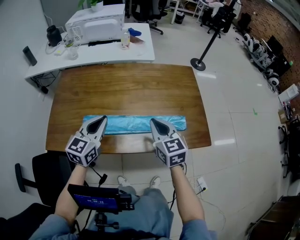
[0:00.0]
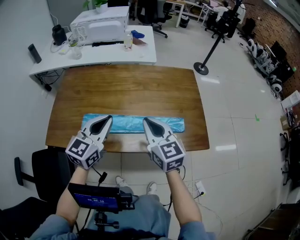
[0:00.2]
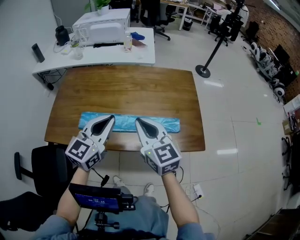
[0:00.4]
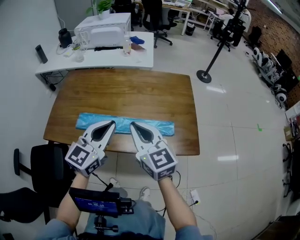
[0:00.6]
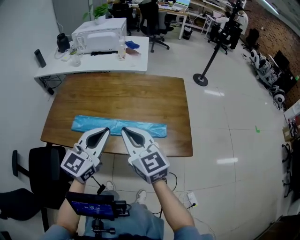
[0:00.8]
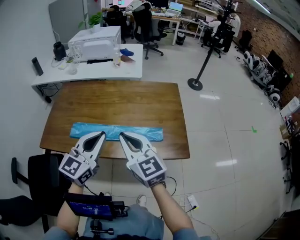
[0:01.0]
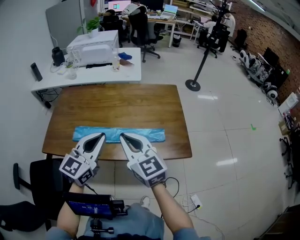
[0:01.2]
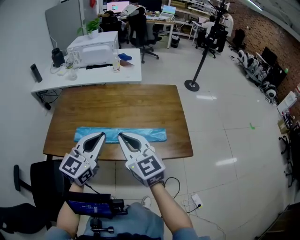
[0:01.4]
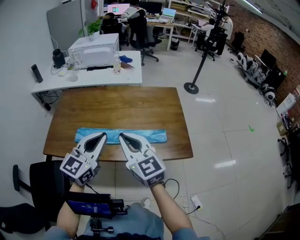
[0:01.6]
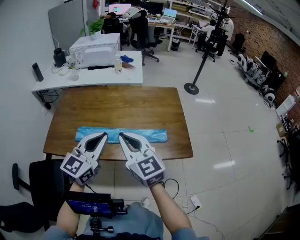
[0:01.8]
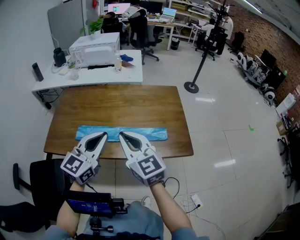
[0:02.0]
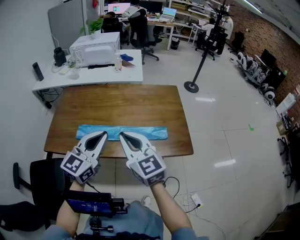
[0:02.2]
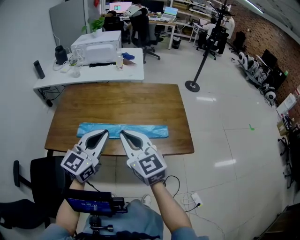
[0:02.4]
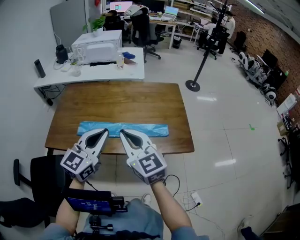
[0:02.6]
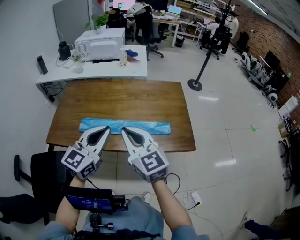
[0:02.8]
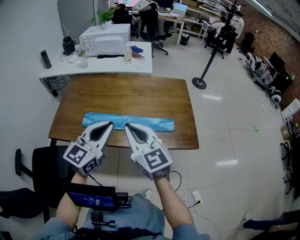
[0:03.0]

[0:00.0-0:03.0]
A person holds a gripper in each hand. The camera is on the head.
0:00.0 to 0:01.6: The left gripper heads upward, backward and to the right, covering roughly 20 cm. The right gripper travels upward and backward by about 15 cm, and swivels roughly 20 degrees.
0:01.6 to 0:03.0: The grippers move only a little.

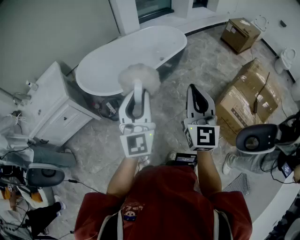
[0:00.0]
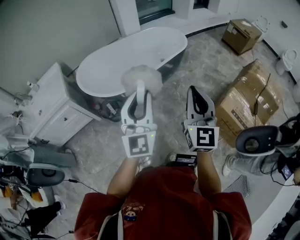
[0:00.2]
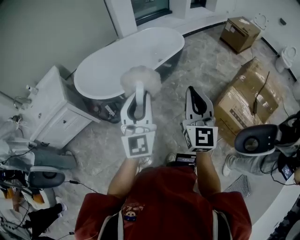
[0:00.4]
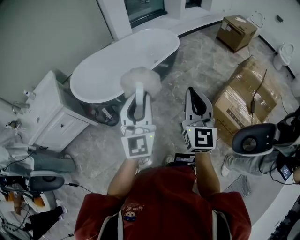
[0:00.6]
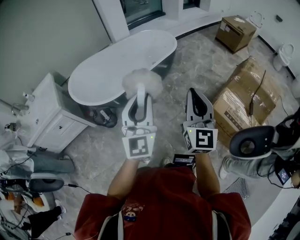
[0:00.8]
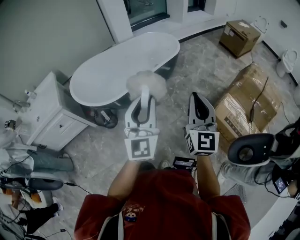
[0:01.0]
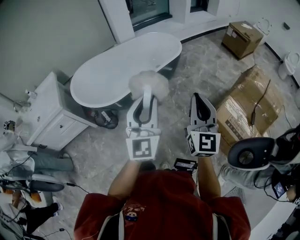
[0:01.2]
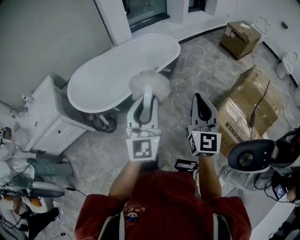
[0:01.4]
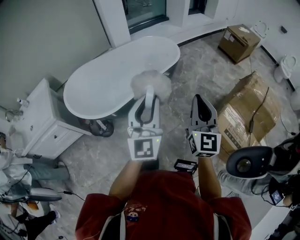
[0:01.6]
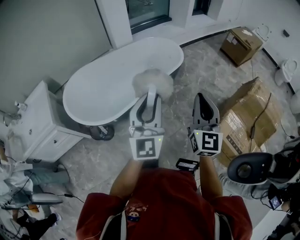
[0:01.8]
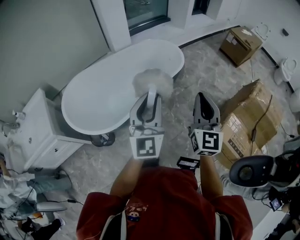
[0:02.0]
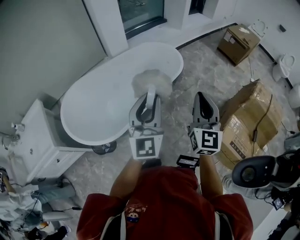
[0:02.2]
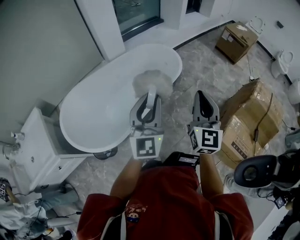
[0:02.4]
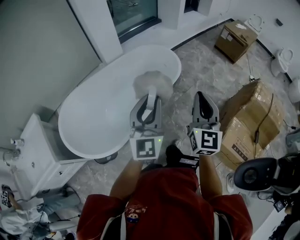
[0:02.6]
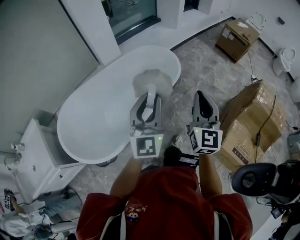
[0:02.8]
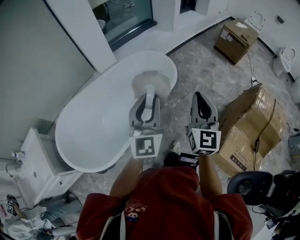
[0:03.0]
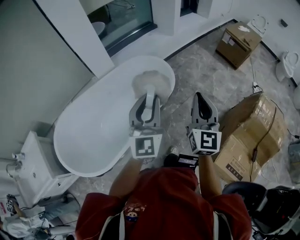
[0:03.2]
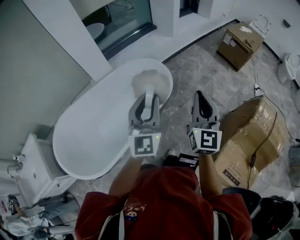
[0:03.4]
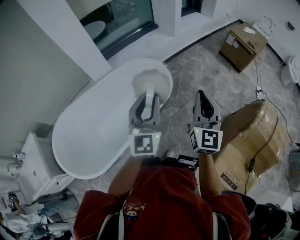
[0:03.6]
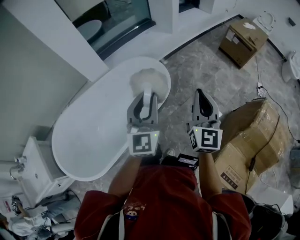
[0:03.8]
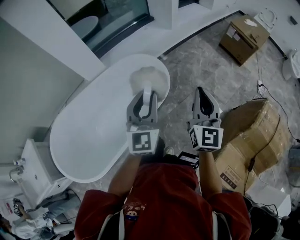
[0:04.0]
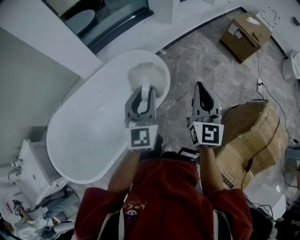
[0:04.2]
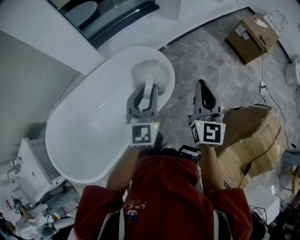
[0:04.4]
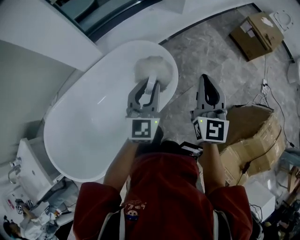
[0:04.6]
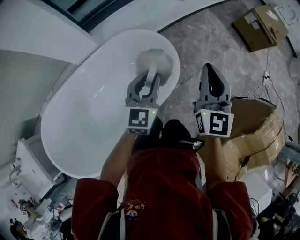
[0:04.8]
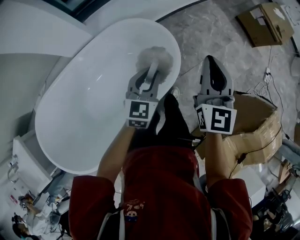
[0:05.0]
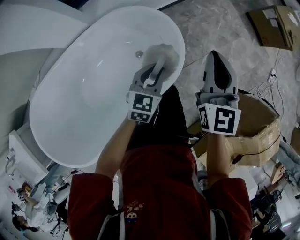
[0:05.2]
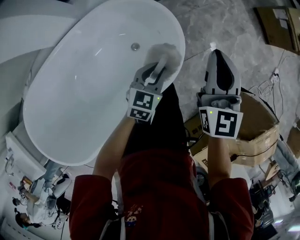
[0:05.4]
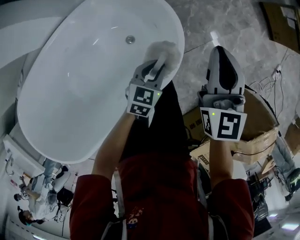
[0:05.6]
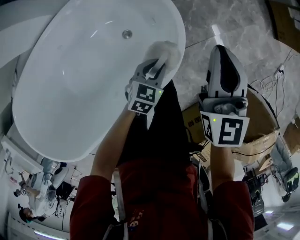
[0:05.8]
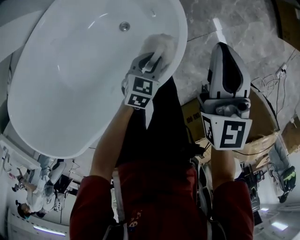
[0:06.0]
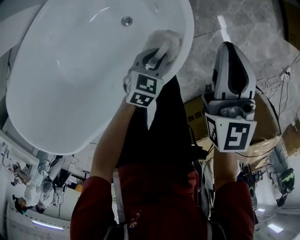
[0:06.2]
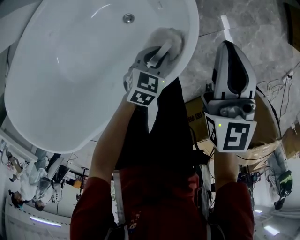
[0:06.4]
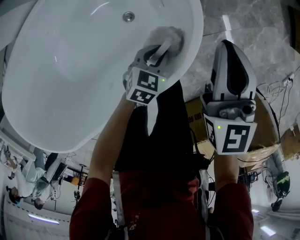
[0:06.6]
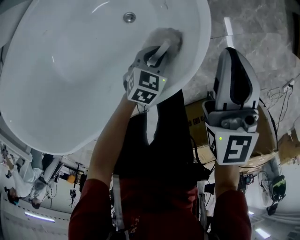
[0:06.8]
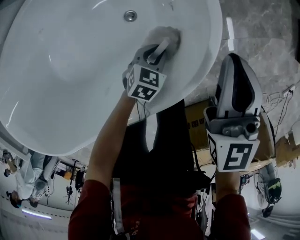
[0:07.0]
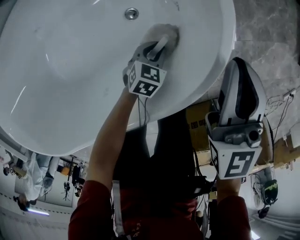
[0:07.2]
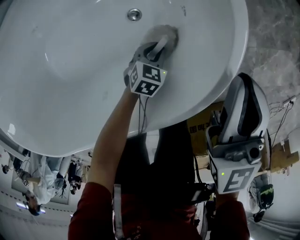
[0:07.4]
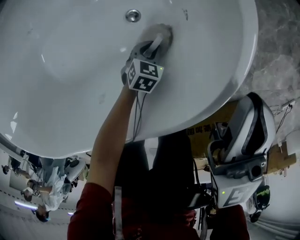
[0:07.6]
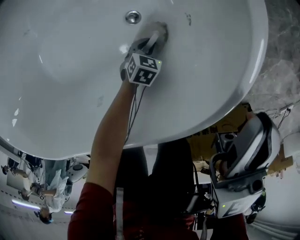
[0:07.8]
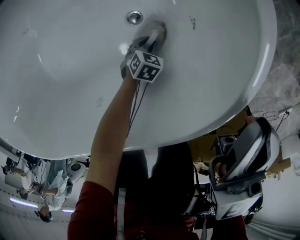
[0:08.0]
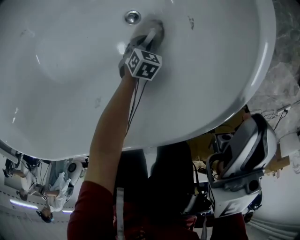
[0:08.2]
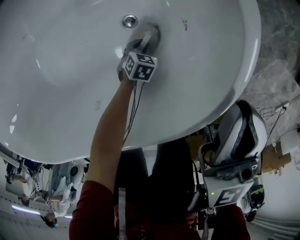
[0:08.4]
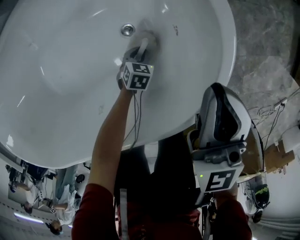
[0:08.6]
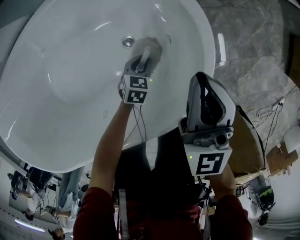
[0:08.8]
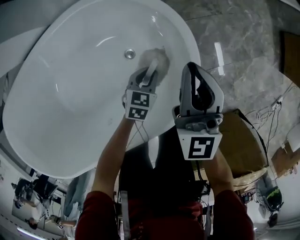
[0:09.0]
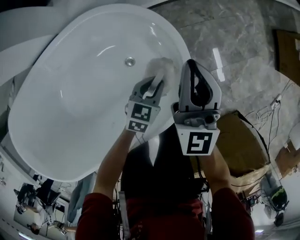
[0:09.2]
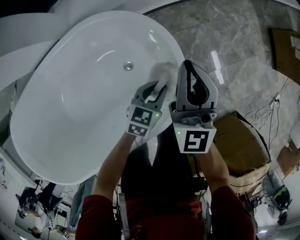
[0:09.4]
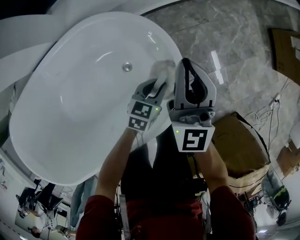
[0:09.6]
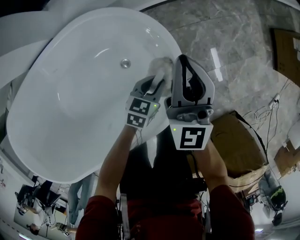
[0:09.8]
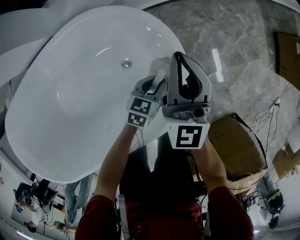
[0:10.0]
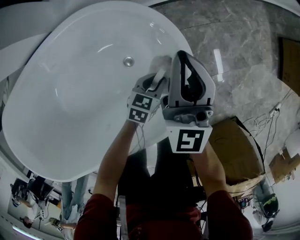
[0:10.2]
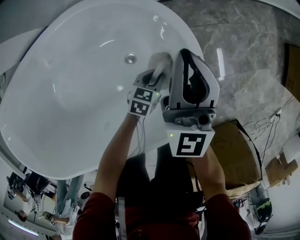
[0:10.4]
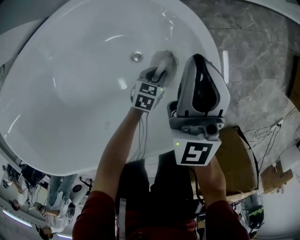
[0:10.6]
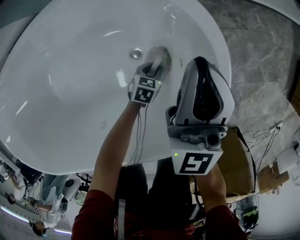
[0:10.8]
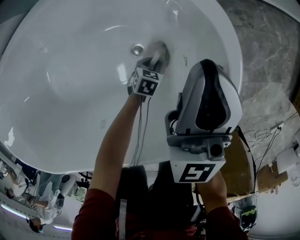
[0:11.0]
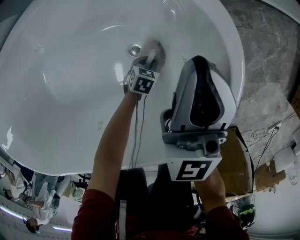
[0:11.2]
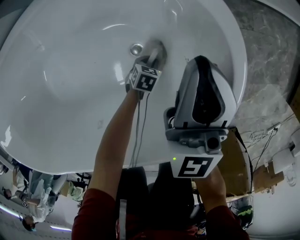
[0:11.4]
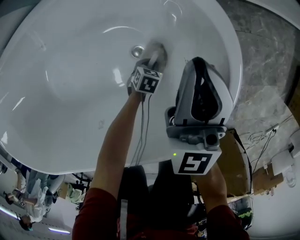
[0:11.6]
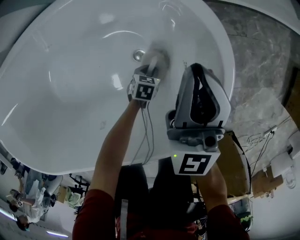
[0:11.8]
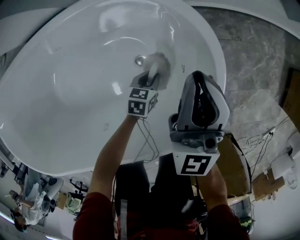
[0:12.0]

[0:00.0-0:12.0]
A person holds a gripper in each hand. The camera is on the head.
0:00.0 to 0:01.6: Both grippers move forward and to the right, approximately 20 cm.
0:01.6 to 0:03.0: The grippers both shift forward by approximately 40 cm.
0:03.0 to 0:04.4: Both grippers travel together forward, about 30 cm.
0:04.4 to 0:06.0: The left gripper travels downward by some 50 cm, and tilts its fingers approximately 50 degrees downward, while the right gripper moves downward and forward, about 40 cm, and turns by some 30 degrees.
0:06.0 to 0:07.6: The right gripper heads downward and to the left, covering approximately 15 cm; the left gripper heads downward, covering some 30 cm.
0:07.6 to 0:09.0: The right gripper shifts roughly 5 cm upward. The left gripper travels upward by some 20 cm.
0:09.0 to 0:10.4: The right gripper goes upward and returns, some 5 cm each way, while the left gripper shifts some 5 cm downward.
0:10.4 to 0:12.0: The left gripper moves to the left, roughly 10 cm, and moves roughly 20 cm downward and comes back. The right gripper travels to the left by approximately 5 cm, and reaches some 5 cm downward, then returns.

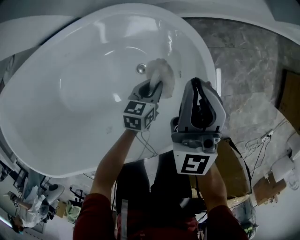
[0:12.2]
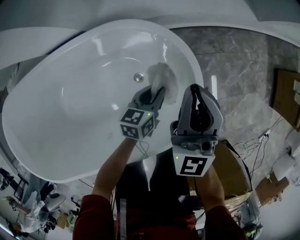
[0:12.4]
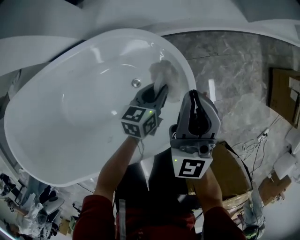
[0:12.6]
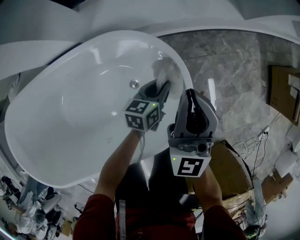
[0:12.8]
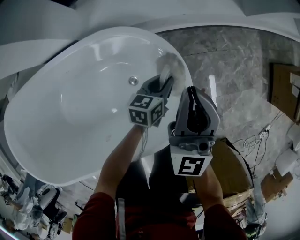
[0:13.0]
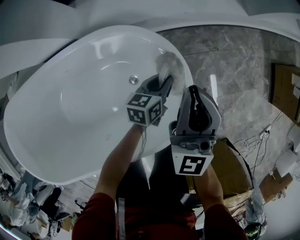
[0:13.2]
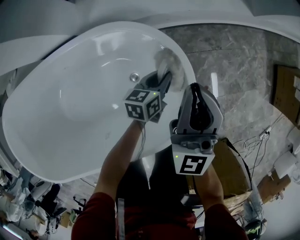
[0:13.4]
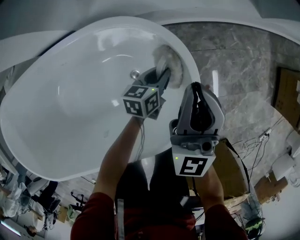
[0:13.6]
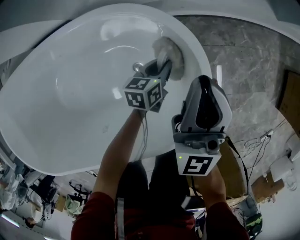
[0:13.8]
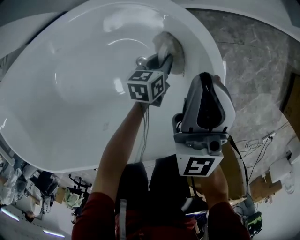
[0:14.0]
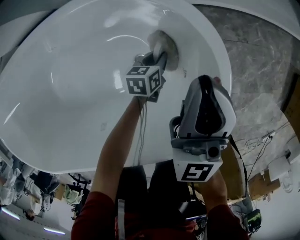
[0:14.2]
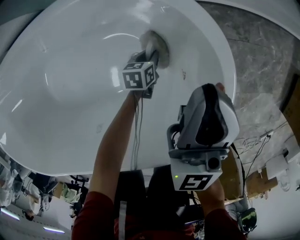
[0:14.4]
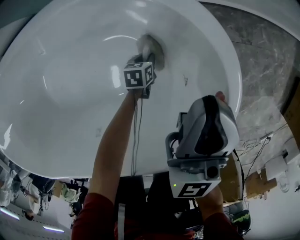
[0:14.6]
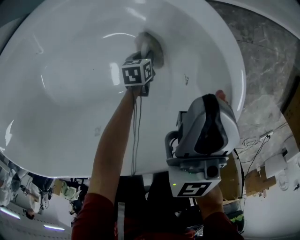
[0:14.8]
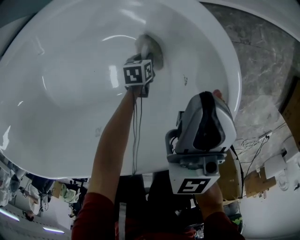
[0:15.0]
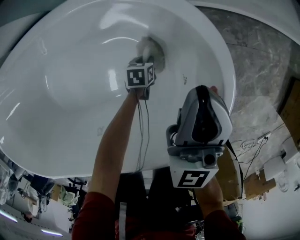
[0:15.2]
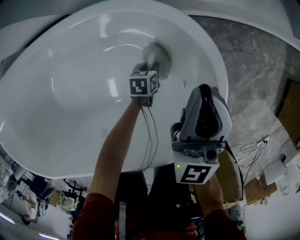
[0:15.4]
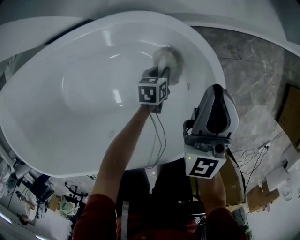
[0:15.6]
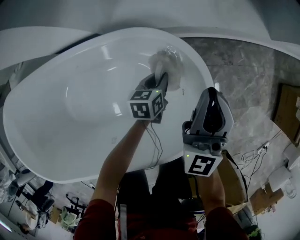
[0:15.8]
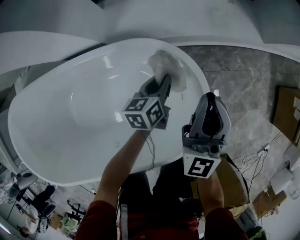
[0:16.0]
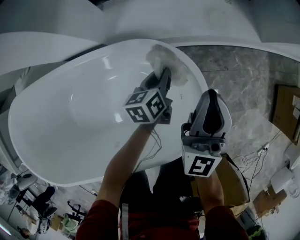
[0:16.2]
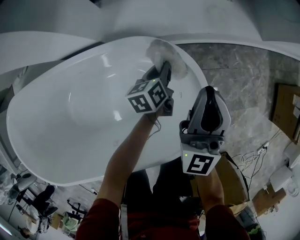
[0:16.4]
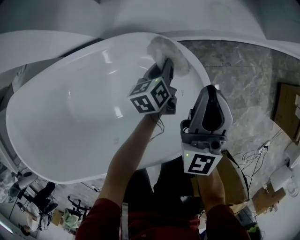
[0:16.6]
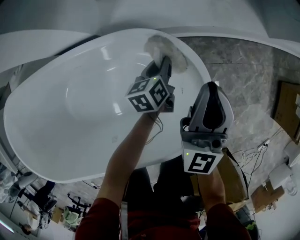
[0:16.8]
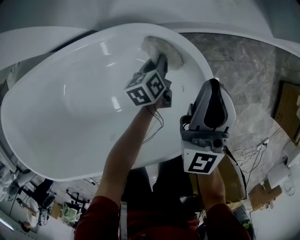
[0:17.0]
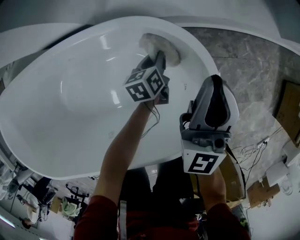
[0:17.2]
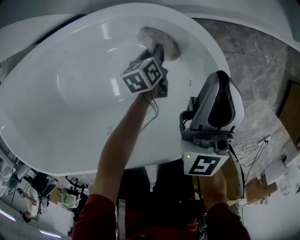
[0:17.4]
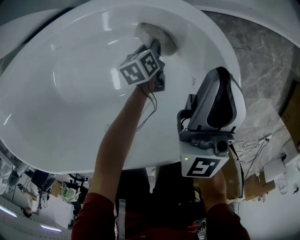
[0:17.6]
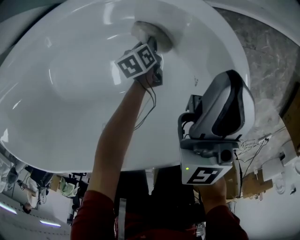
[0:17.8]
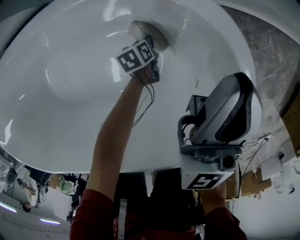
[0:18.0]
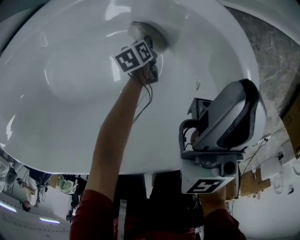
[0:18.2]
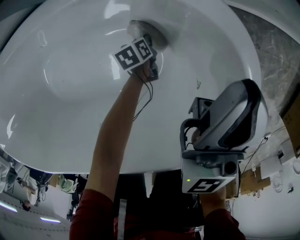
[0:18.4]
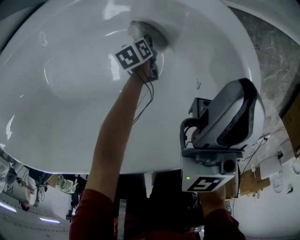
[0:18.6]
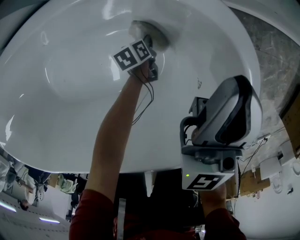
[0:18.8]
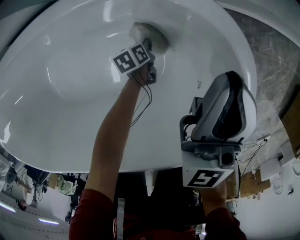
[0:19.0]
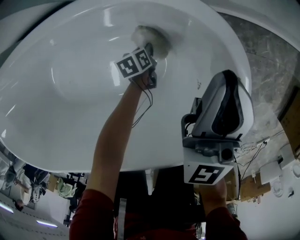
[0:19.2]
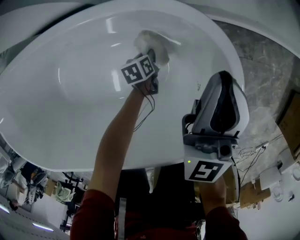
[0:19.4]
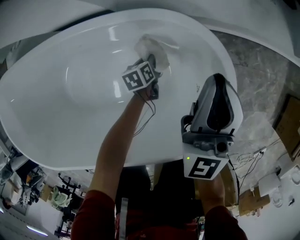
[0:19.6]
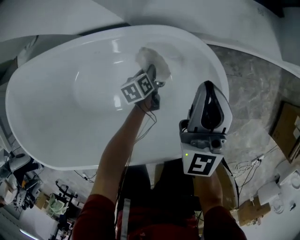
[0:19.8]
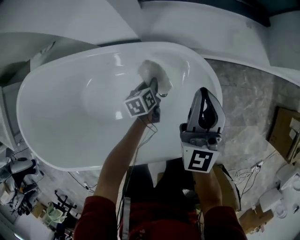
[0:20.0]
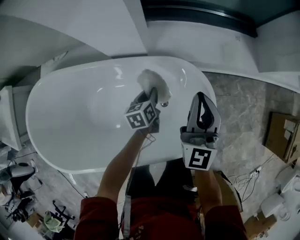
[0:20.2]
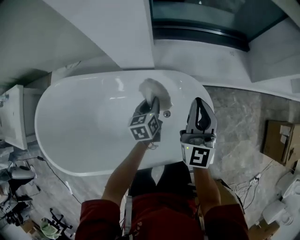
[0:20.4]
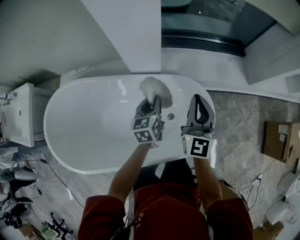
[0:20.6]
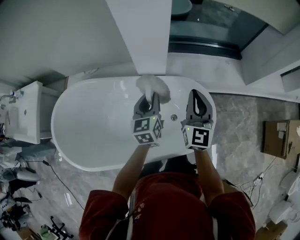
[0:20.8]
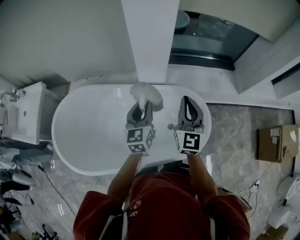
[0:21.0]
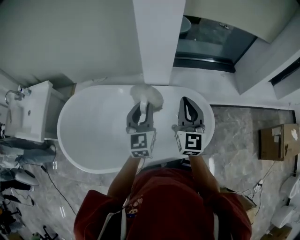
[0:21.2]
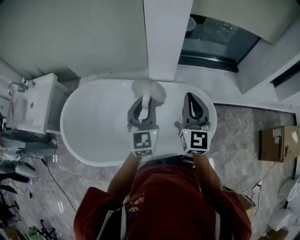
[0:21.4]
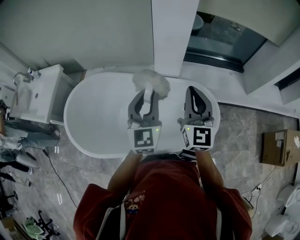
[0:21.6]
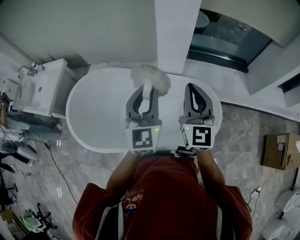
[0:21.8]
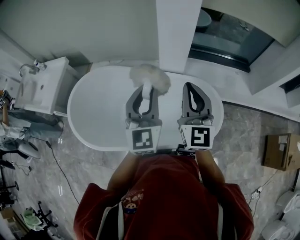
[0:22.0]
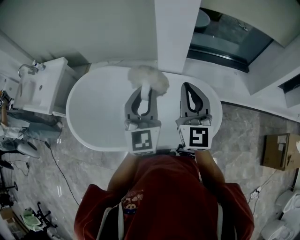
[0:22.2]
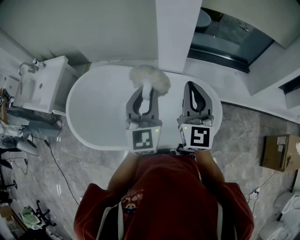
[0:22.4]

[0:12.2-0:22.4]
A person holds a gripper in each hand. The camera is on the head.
0:12.2 to 0:13.6: The right gripper travels upward and back again, some 10 cm each way; the left gripper travels forward by roughly 10 cm, and reaches approximately 10 cm upward, then returns.
0:13.6 to 0:15.2: The right gripper goes about 15 cm downward and to the left. Meanwhile the left gripper is displaced downward by some 25 cm, and swivels approximately 30 degrees.
0:15.2 to 0:16.6: The left gripper heads upward and forward, covering approximately 35 cm, and angles its fingers upward, by approximately 30 degrees. The right gripper goes some 15 cm upward.
0:16.6 to 0:18.0: The left gripper is displaced downward by about 35 cm, and tips its fingers downward by roughly 30 degrees, while the right gripper moves downward, some 15 cm.
0:18.0 to 0:19.4: The left gripper goes roughly 5 cm upward. The right gripper ends up approximately 5 cm from where it was.
0:19.4 to 0:21.0: The left gripper goes some 70 cm upward, and tips its fingers upward by about 50 degrees. The right gripper moves upward, to the left and backward, about 50 cm.
0:21.0 to 0:22.4: The left gripper shifts roughly 20 cm upward and backward, and turns by approximately 20 degrees. Meanwhile the right gripper goes about 15 cm upward, backward and to the left.
